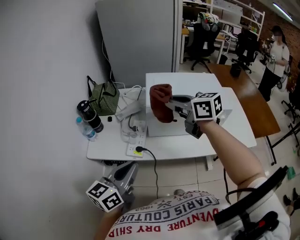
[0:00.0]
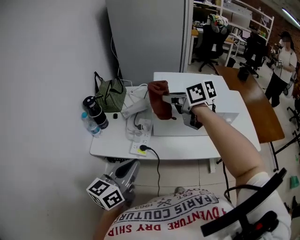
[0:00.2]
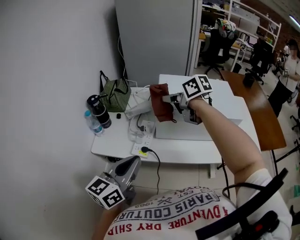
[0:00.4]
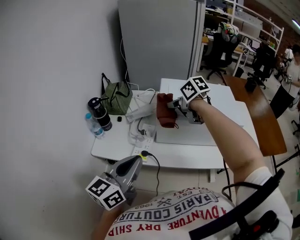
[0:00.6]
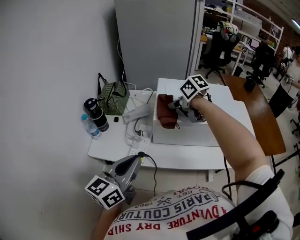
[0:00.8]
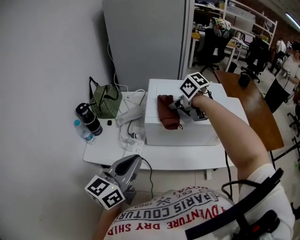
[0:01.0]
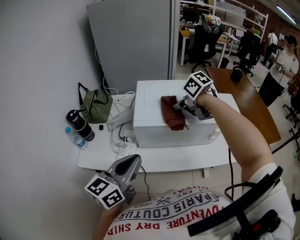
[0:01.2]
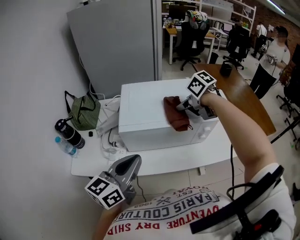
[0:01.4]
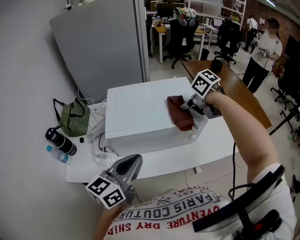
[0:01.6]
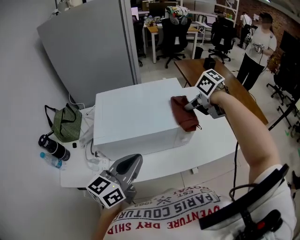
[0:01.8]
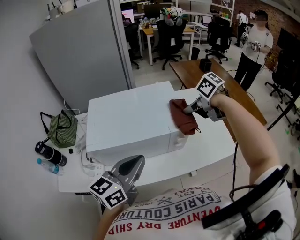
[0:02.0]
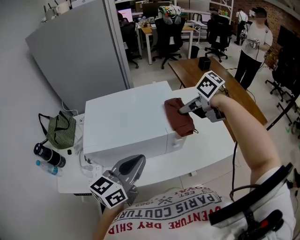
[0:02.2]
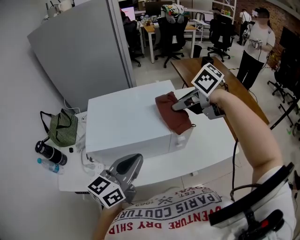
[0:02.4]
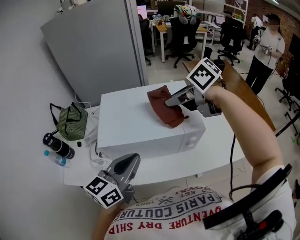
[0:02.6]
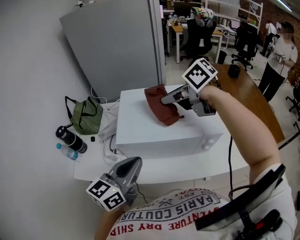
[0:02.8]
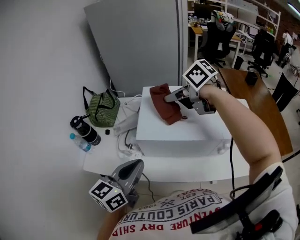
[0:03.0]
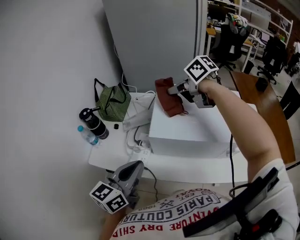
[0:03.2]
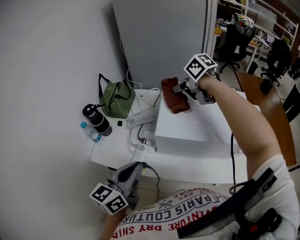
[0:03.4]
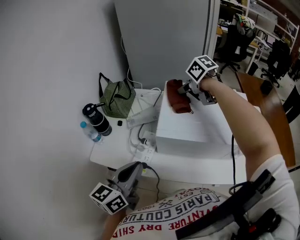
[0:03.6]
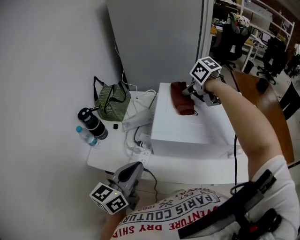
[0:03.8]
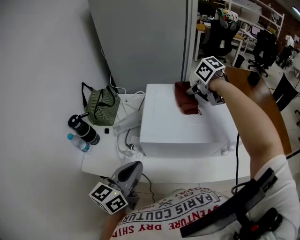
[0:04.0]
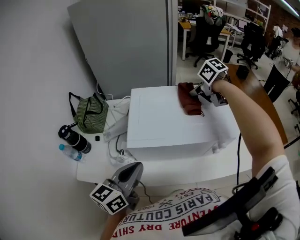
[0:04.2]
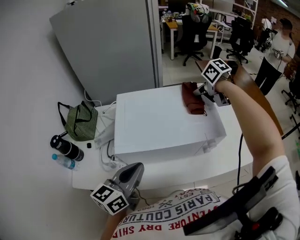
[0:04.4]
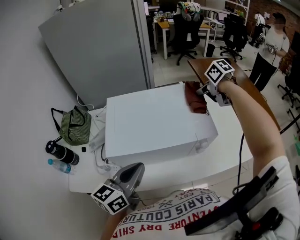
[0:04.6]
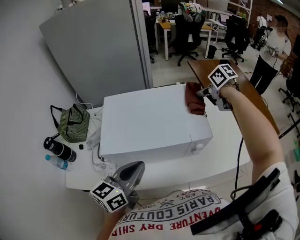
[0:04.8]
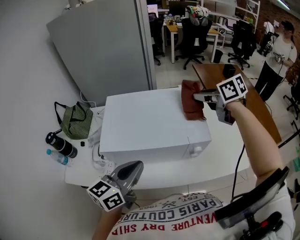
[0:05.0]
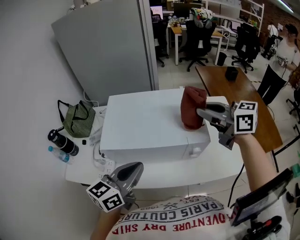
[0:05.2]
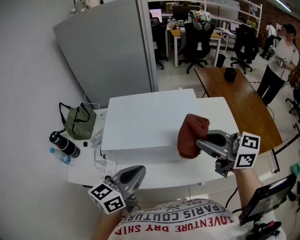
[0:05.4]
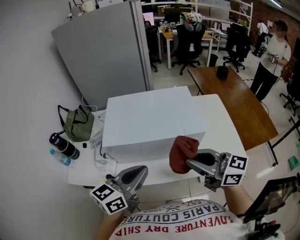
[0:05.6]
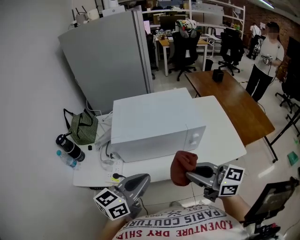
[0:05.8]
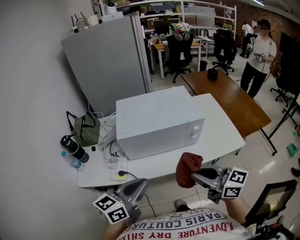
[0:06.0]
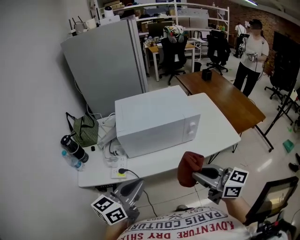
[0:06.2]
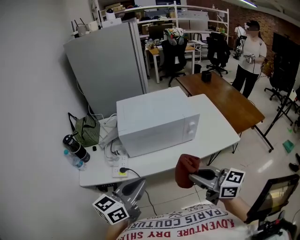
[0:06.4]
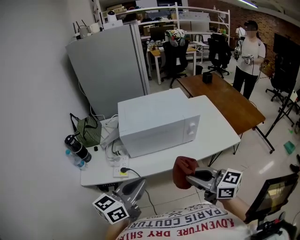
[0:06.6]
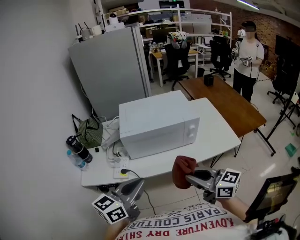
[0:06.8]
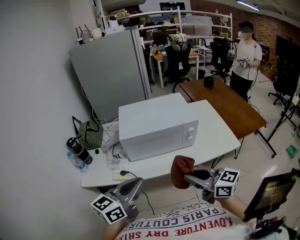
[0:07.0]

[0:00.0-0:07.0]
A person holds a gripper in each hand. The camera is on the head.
0:00.0 to 0:01.4: The left gripper is displaced to the right by some 15 cm. The right gripper travels to the right and downward by roughly 20 cm, and tilts its fingers some 40 degrees downward.
0:01.4 to 0:02.8: The left gripper goes to the right and returns, roughly 15 cm each way; the right gripper heads upward, covering approximately 10 cm, moves some 15 cm to the right and comes back, and swivels about 20 degrees.
0:02.8 to 0:04.2: The right gripper is displaced to the right, downward and forward by approximately 15 cm, and swivels about 30 degrees; the left gripper goes to the left and returns, roughly 15 cm each way.
0:04.2 to 0:05.6: The left gripper goes roughly 15 cm to the right and backward, while the right gripper is displaced backward by approximately 35 cm, and tilts its fingers roughly 50 degrees upward.
0:05.6 to 0:07.0: Both grippers travel together backward and to the left, approximately 20 cm.

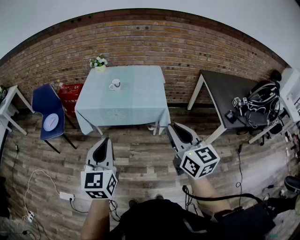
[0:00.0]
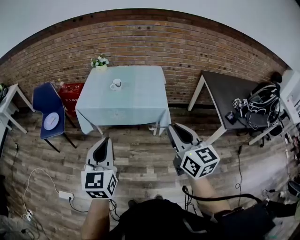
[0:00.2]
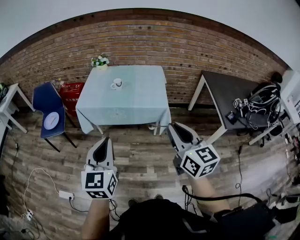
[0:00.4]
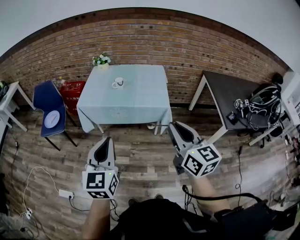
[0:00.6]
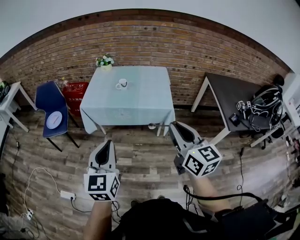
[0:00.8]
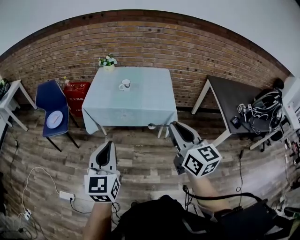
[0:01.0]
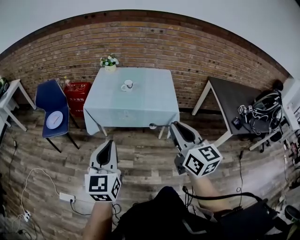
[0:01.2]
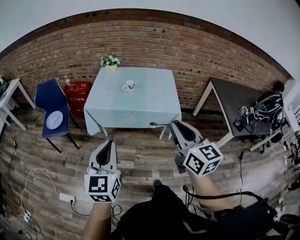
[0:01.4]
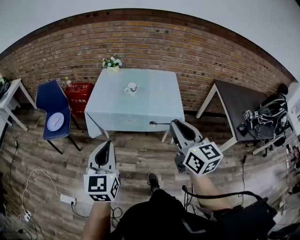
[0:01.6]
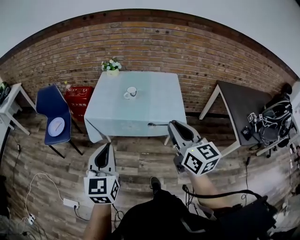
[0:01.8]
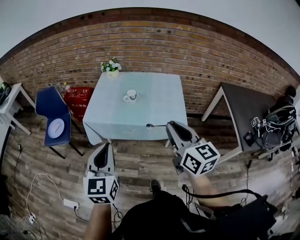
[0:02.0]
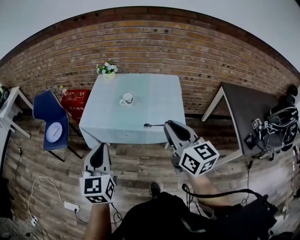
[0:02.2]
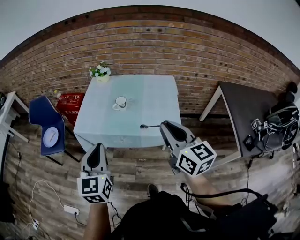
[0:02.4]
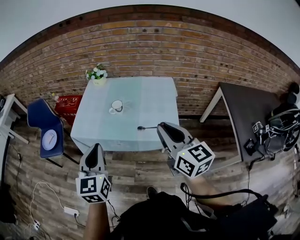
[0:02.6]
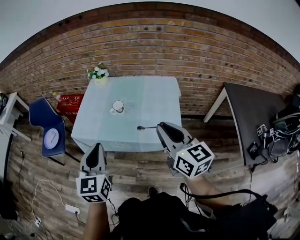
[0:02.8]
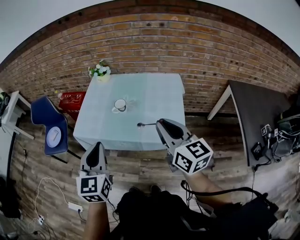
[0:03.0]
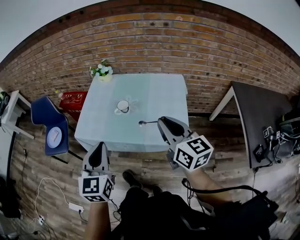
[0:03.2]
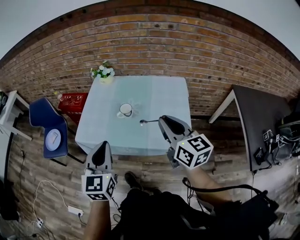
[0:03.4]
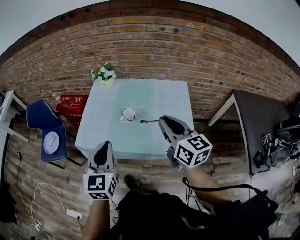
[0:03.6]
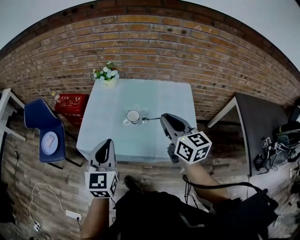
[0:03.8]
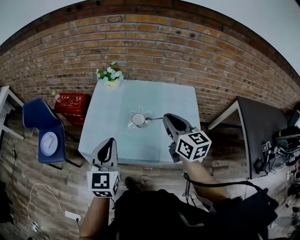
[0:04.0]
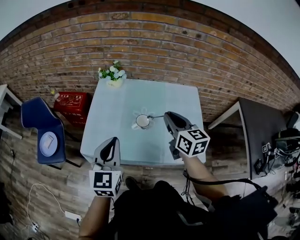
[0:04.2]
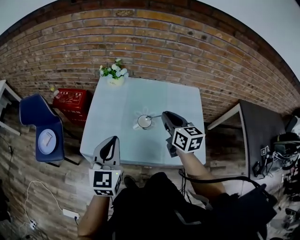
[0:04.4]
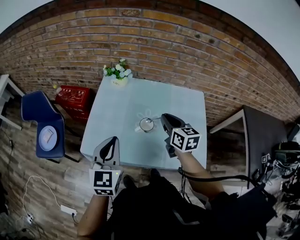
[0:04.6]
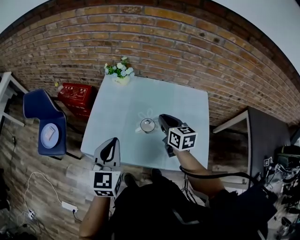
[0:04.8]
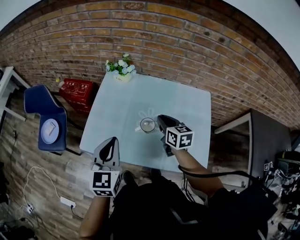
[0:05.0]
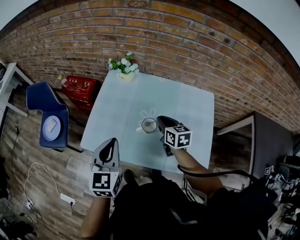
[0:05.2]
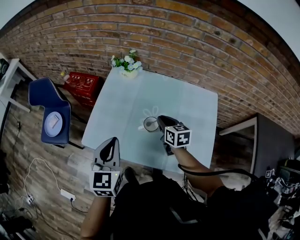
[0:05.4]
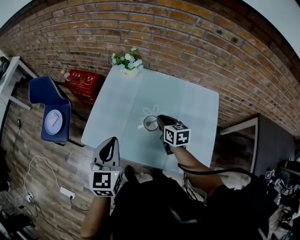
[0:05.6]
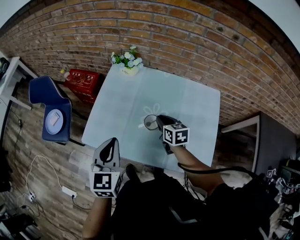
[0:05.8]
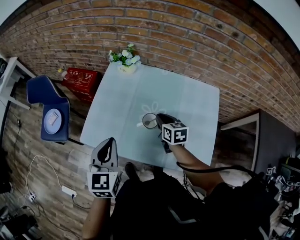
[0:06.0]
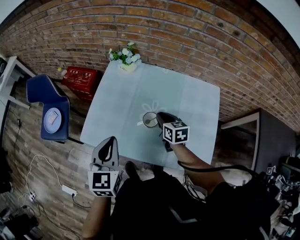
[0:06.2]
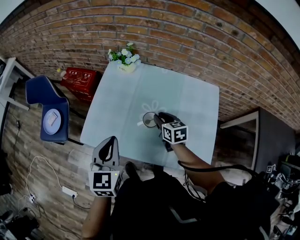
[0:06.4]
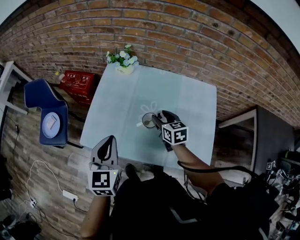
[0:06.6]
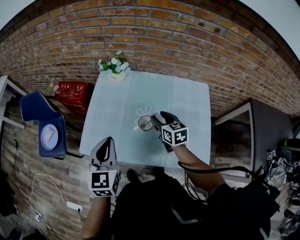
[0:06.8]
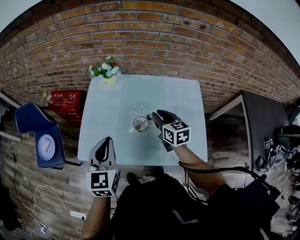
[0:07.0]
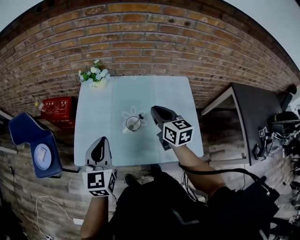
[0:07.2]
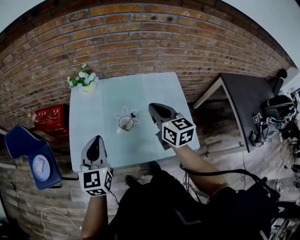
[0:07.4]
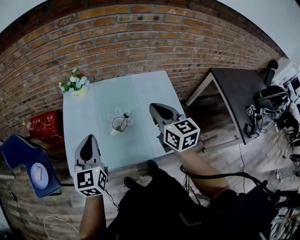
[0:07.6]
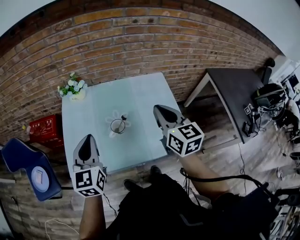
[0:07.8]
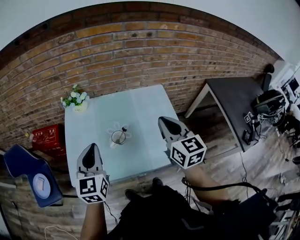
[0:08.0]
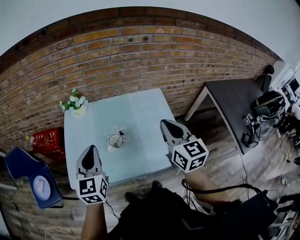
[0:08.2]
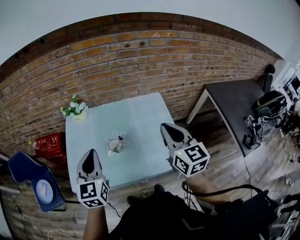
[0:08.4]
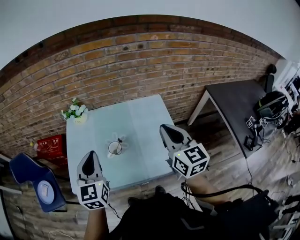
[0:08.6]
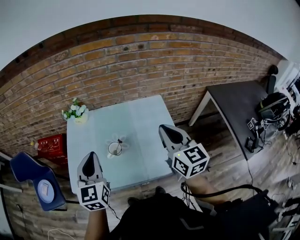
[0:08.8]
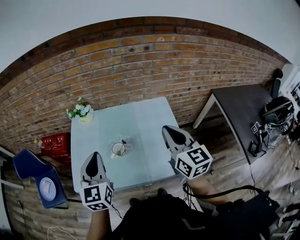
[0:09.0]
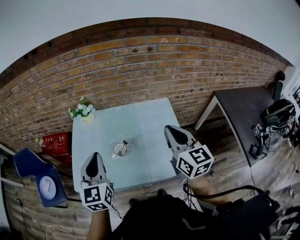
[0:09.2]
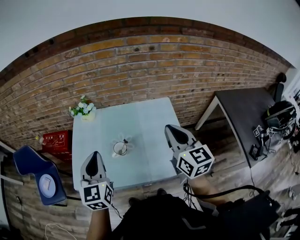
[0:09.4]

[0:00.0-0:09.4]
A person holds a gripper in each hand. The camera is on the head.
0:00.0 to 0:01.6: The left gripper heads to the left and forward, covering some 10 cm; the right gripper shifts roughly 15 cm forward and to the left.
0:01.6 to 0:03.2: Both grippers move forward and to the right, some 30 cm.
0:03.2 to 0:04.8: The right gripper travels forward and downward by approximately 30 cm. The left gripper moves forward, roughly 20 cm.
0:04.8 to 0:06.2: The right gripper heads downward, covering about 10 cm.
0:06.2 to 0:07.8: The right gripper goes some 25 cm upward and backward, changes its angle by some 30 degrees, and opens and closes again, while the left gripper moves some 5 cm, and swivels roughly 20 degrees.
0:07.8 to 0:09.4: The right gripper goes approximately 10 cm to the right and upward; the left gripper changes place by some 5 cm.

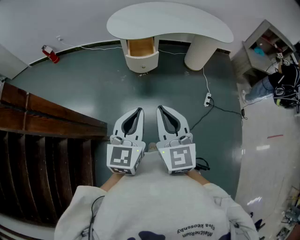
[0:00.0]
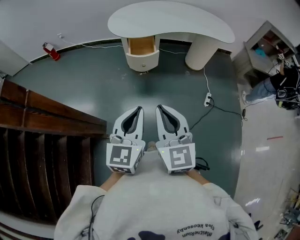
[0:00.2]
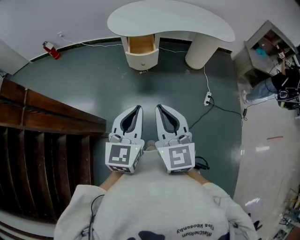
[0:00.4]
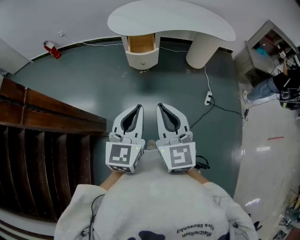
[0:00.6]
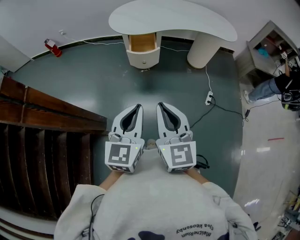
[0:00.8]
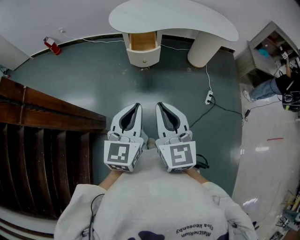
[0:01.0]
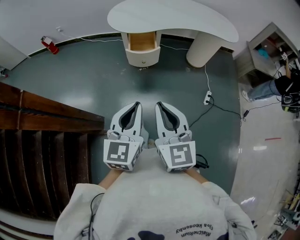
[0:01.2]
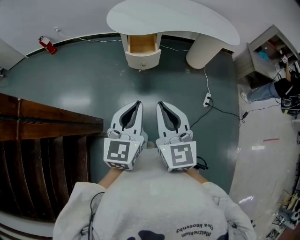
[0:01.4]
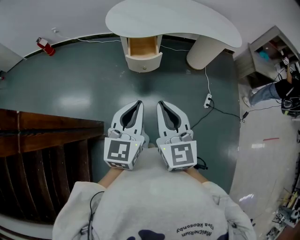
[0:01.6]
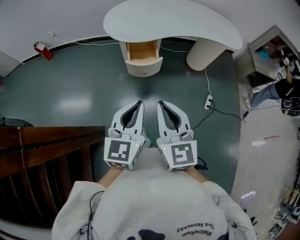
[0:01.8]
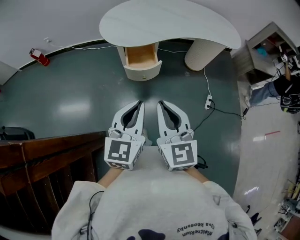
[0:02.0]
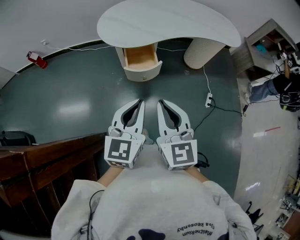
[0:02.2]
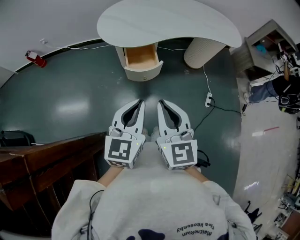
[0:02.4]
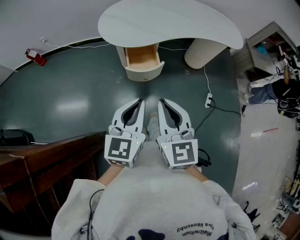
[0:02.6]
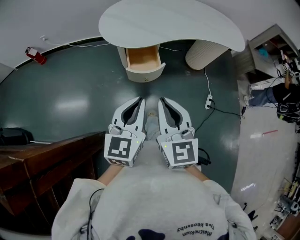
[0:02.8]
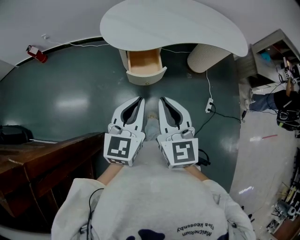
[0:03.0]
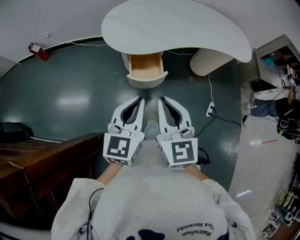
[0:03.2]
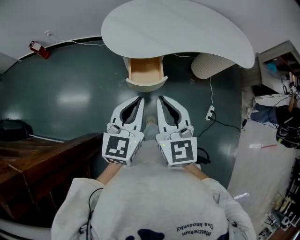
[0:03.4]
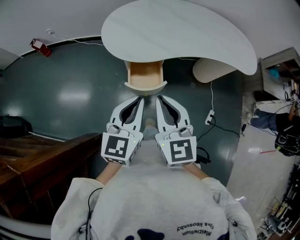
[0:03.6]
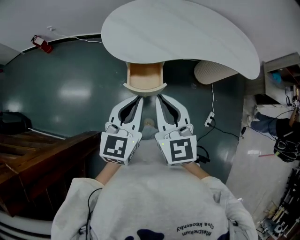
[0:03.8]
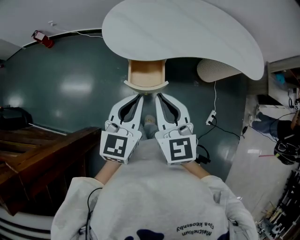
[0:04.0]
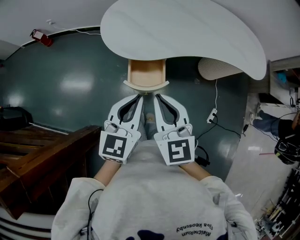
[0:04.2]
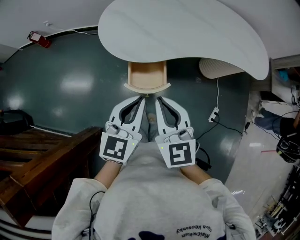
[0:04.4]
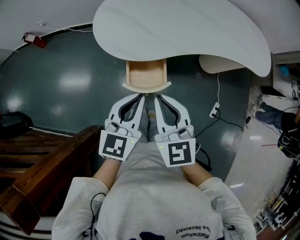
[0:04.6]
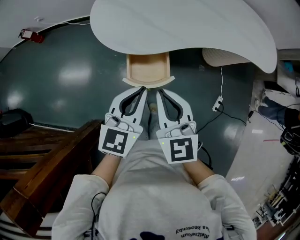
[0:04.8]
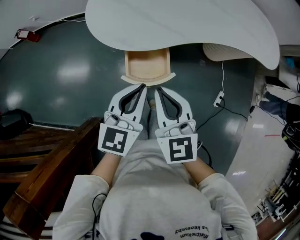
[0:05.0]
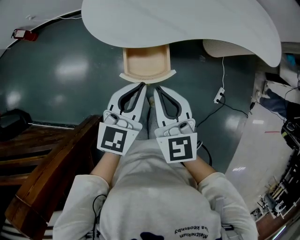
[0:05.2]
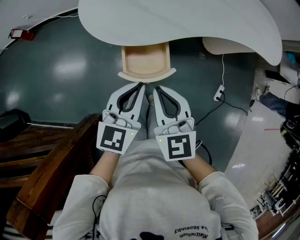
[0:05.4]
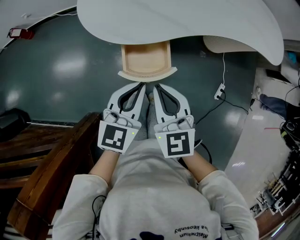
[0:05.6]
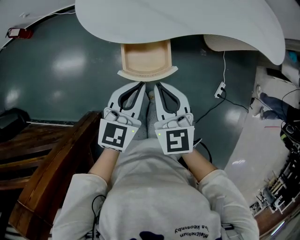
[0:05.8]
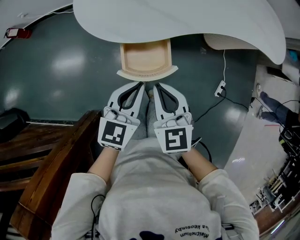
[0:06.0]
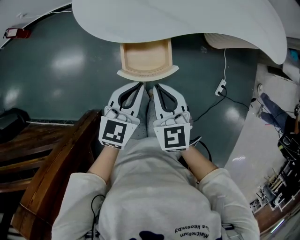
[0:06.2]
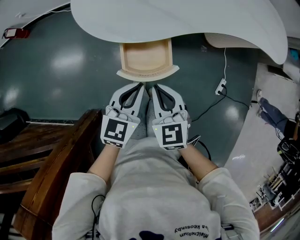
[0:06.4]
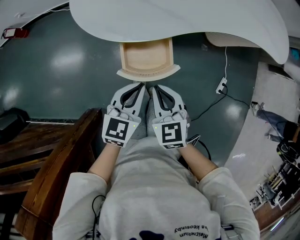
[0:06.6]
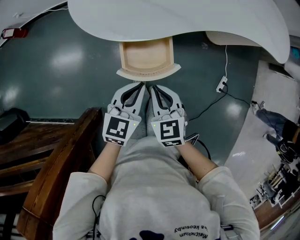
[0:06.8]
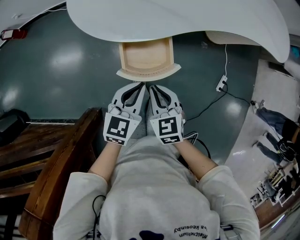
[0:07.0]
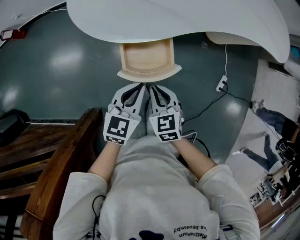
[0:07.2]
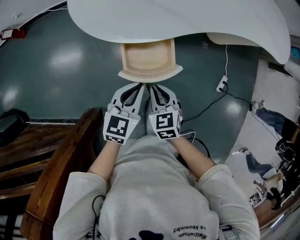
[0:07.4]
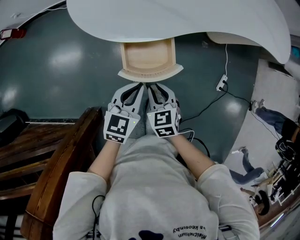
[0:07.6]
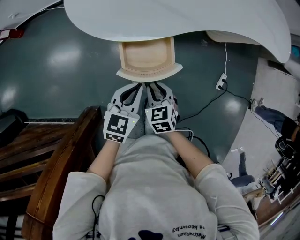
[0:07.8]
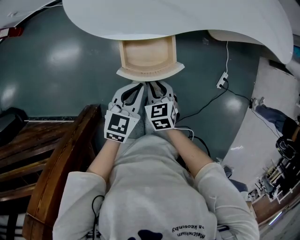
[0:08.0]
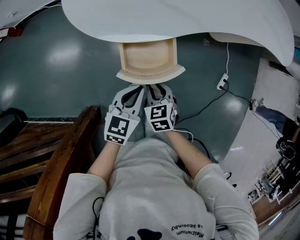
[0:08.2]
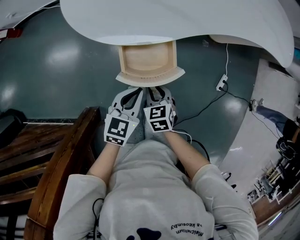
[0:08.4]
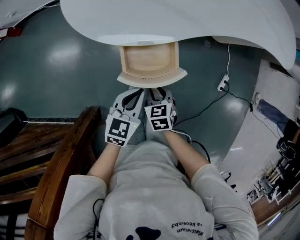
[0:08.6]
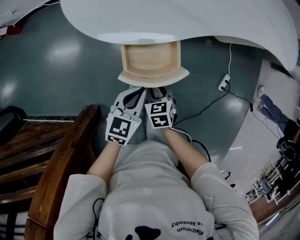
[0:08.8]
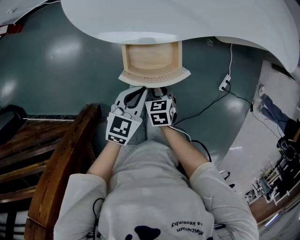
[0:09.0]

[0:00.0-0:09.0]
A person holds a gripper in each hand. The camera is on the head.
0:00.0 to 0:01.6: Both grippers travel together forward, approximately 10 cm.
0:01.6 to 0:03.0: Both grippers move forward, approximately 15 cm.
0:03.0 to 0:04.4: Both grippers travel together forward, approximately 15 cm.
0:04.4 to 0:06.0: Both grippers move downward, some 15 cm.
0:06.0 to 0:07.6: The left gripper heads downward, covering roughly 10 cm. Meanwhile the right gripper goes roughly 15 cm downward, and swivels approximately 20 degrees.
0:07.6 to 0:09.0: The left gripper shifts approximately 5 cm downward. The right gripper travels downward by about 10 cm.
